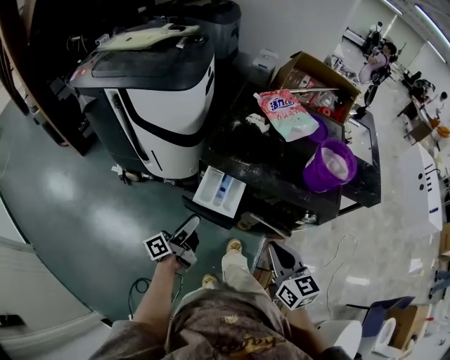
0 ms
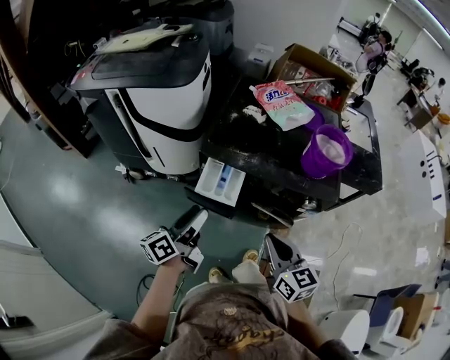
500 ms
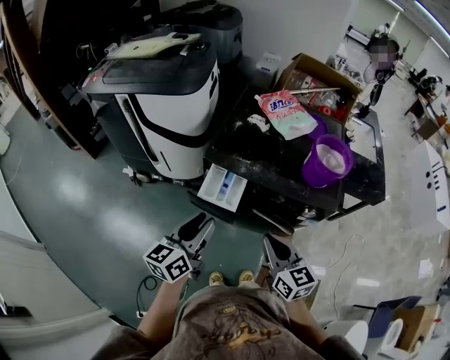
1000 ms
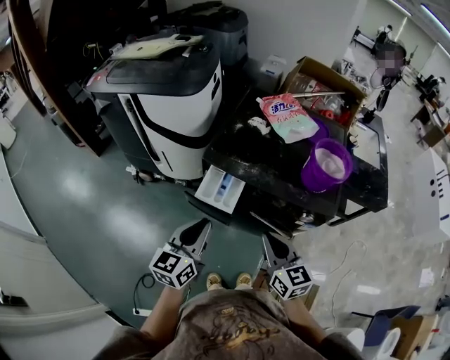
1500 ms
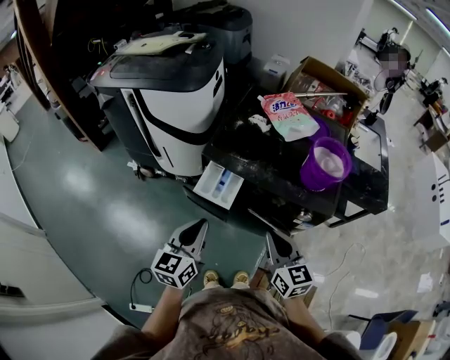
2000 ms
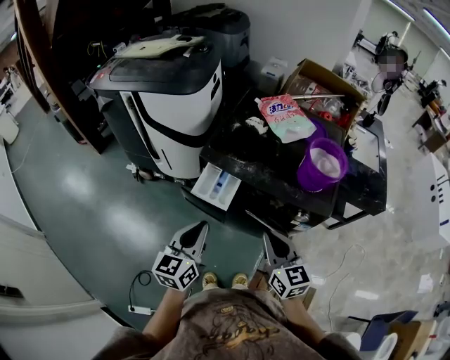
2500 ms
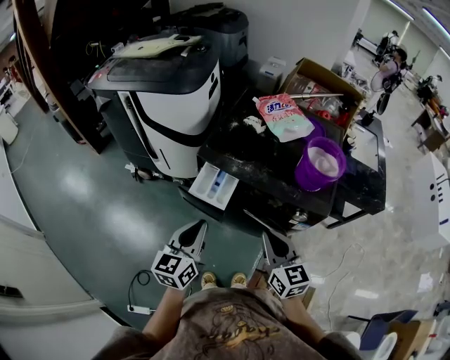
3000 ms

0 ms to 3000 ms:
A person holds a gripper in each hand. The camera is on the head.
0 ms to 1500 ms: The left gripper travels upward and to the right by about 15 cm, rolls clockwise, seen from behind, by roughly 50 degrees, and closes up.
1500 ms to 3000 ms: The grippers stay close to where they were, moving slightly.

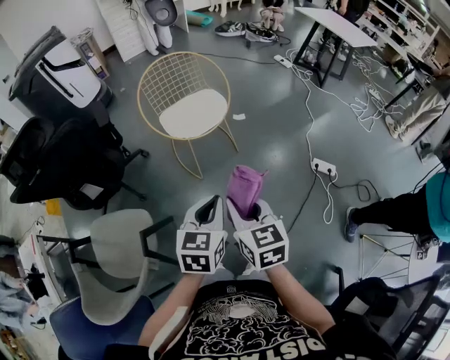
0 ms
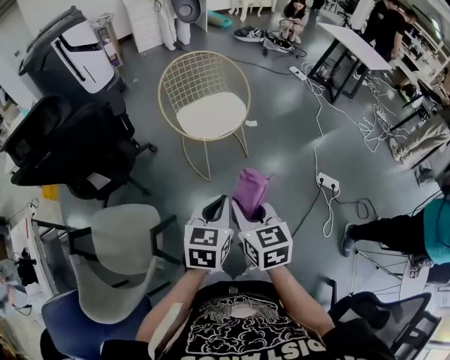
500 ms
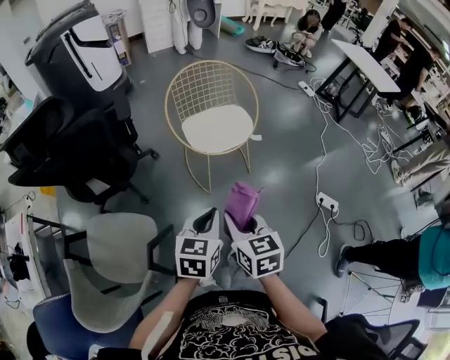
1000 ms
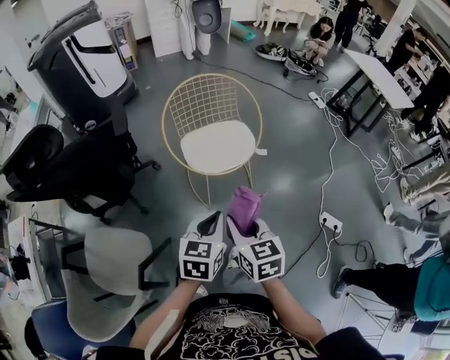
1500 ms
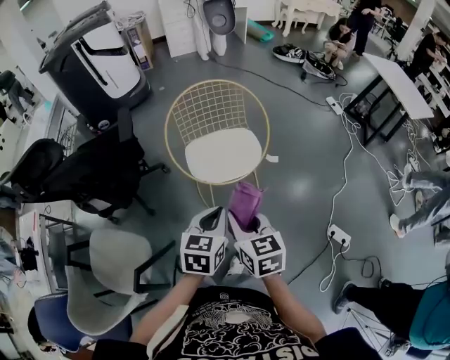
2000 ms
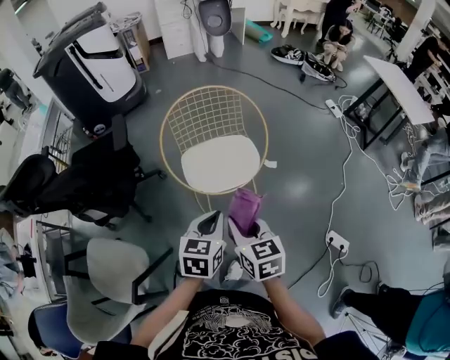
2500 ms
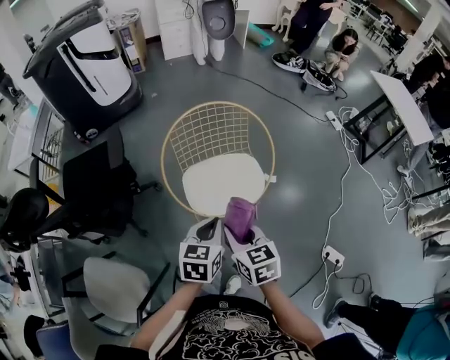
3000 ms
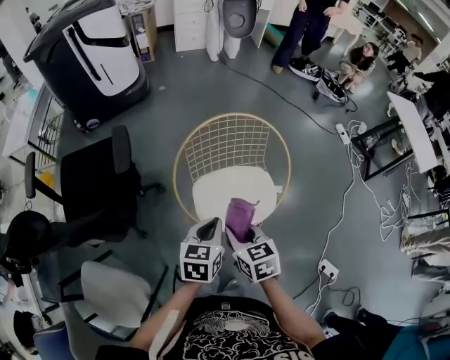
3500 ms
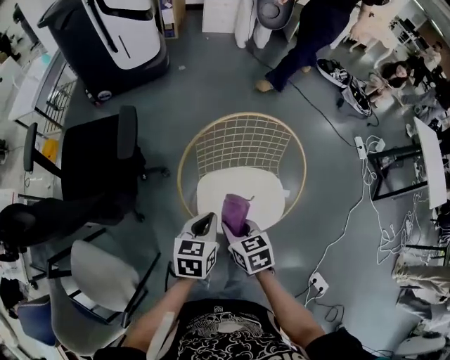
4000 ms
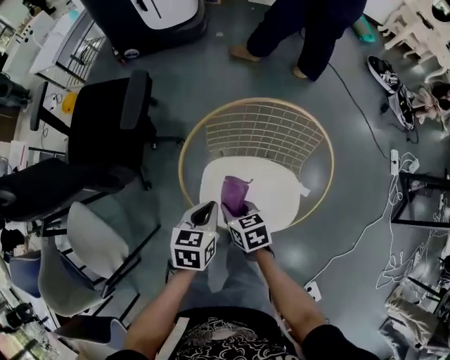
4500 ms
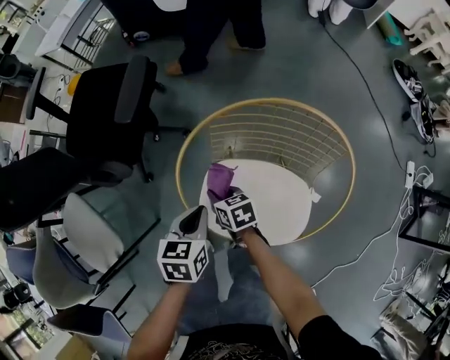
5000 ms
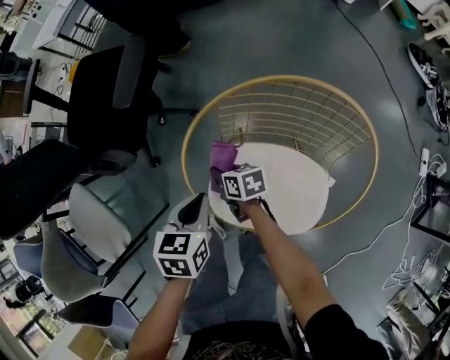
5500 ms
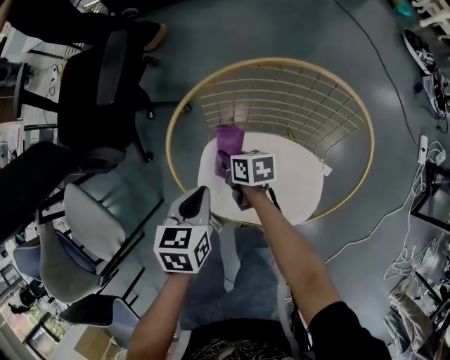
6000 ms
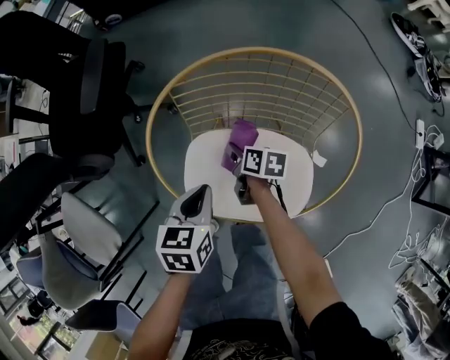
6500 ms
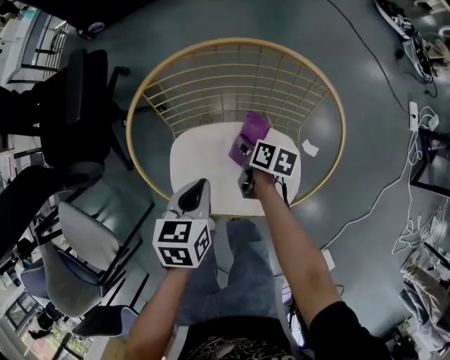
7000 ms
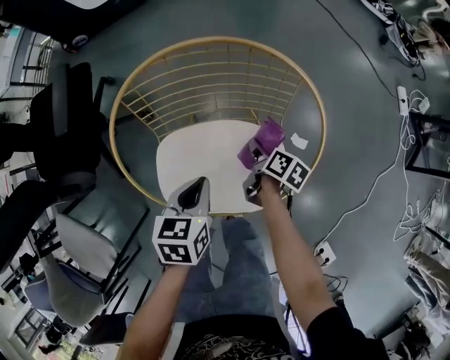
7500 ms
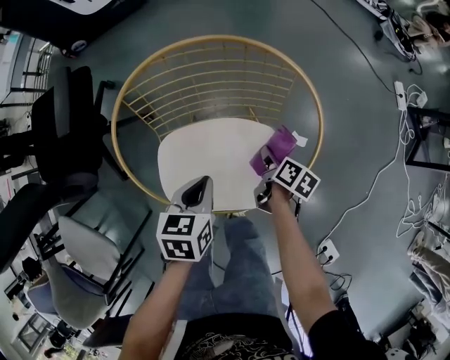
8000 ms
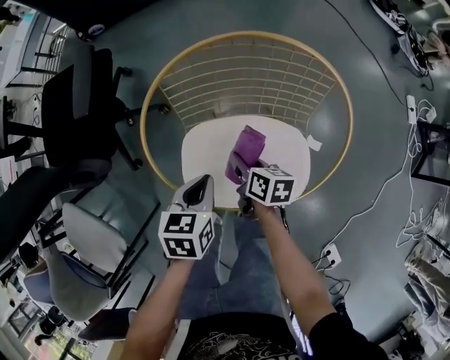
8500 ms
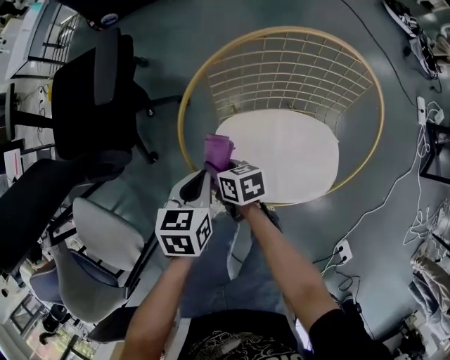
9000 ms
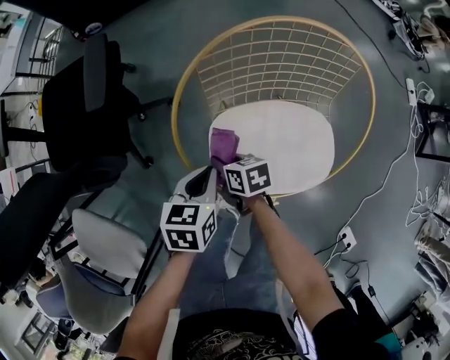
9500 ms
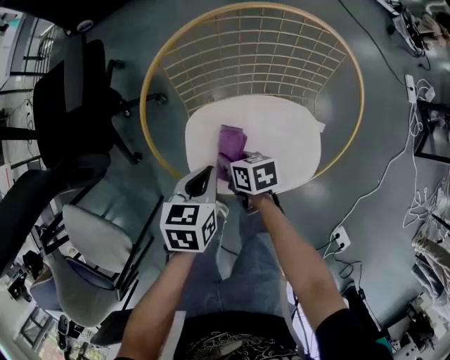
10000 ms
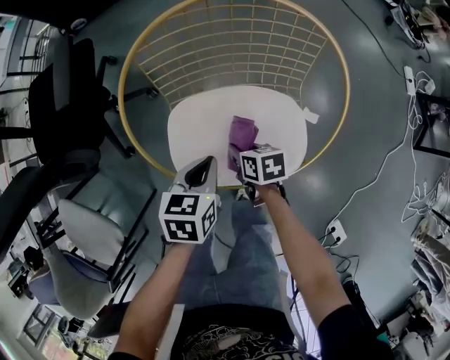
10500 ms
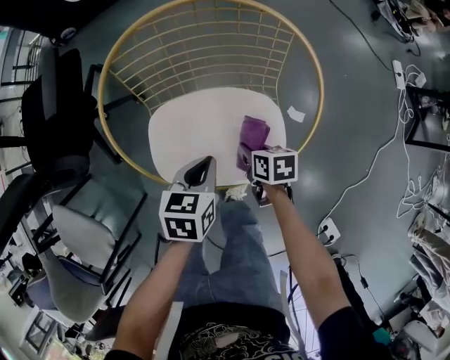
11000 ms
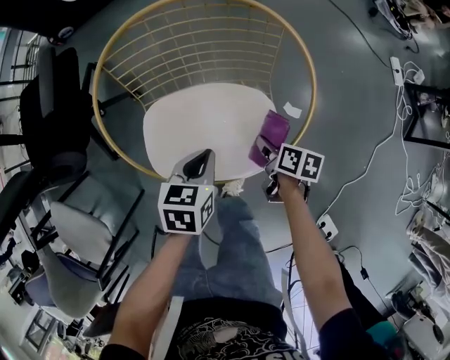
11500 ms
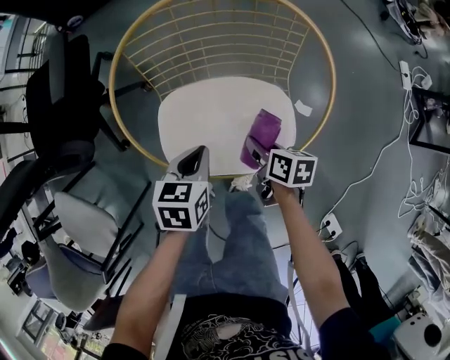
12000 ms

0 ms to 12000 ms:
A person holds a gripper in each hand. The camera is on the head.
0 ms to 2000 ms: Both grippers travel together forward, about 25 cm.
2000 ms to 4000 ms: The right gripper is displaced forward and downward by roughly 30 cm, and rotates about 30 degrees; the left gripper shifts roughly 30 cm forward.
4000 ms to 6000 ms: The left gripper heads downward, covering some 15 cm, and changes its angle by approximately 30 degrees. The right gripper goes some 25 cm downward, and changes its angle by about 30 degrees.
6000 ms to 8000 ms: The right gripper moves some 30 cm, and rotates about 50 degrees, while the left gripper shifts by approximately 15 cm.
8000 ms to 10000 ms: The right gripper shifts by approximately 25 cm, and changes its angle by approximately 50 degrees.
10000 ms to 12000 ms: The left gripper moves to the right, roughly 5 cm. The right gripper travels to the right by approximately 15 cm.

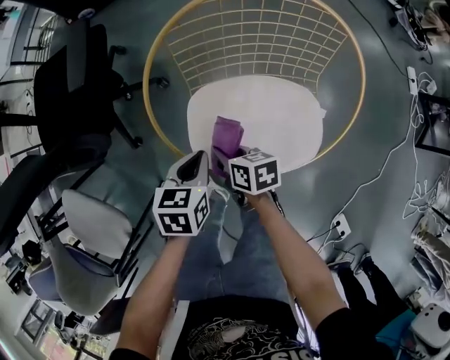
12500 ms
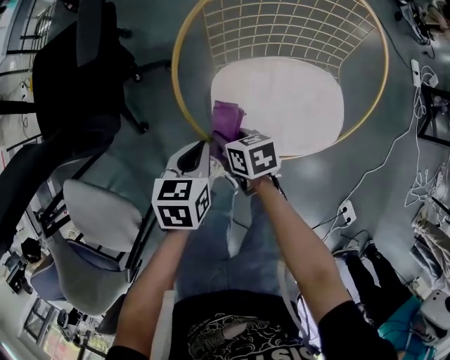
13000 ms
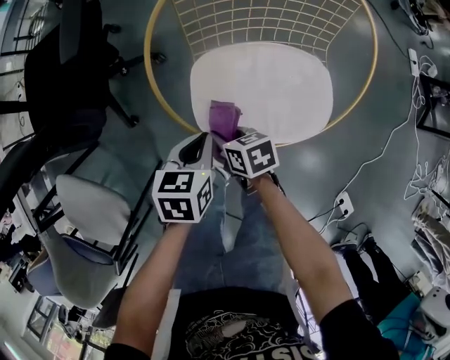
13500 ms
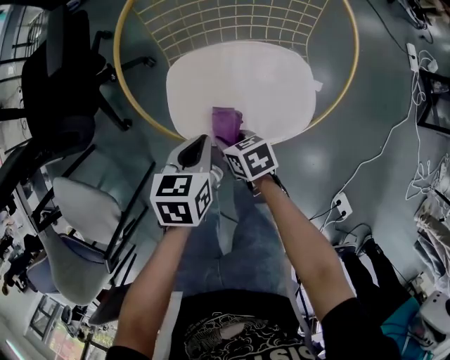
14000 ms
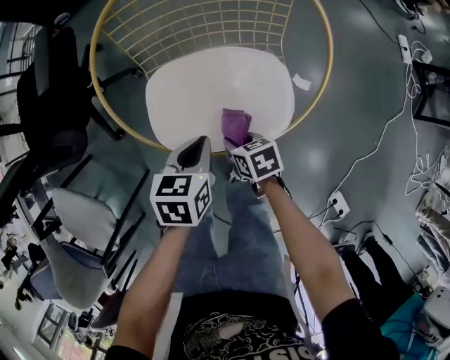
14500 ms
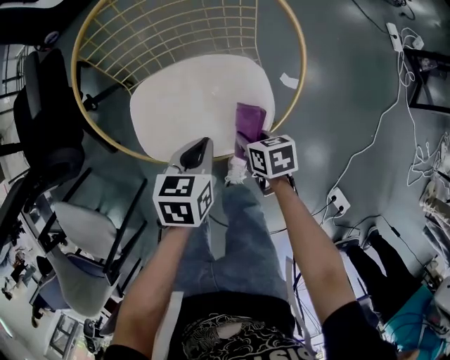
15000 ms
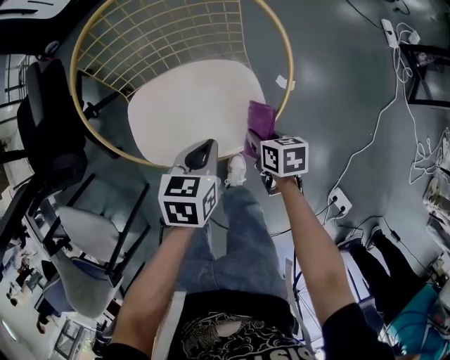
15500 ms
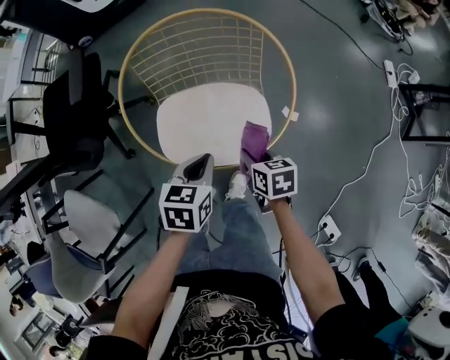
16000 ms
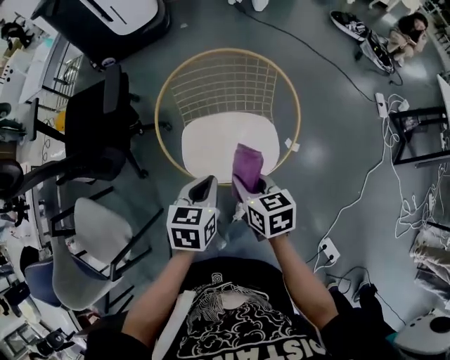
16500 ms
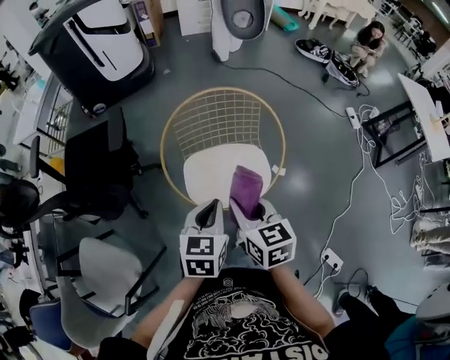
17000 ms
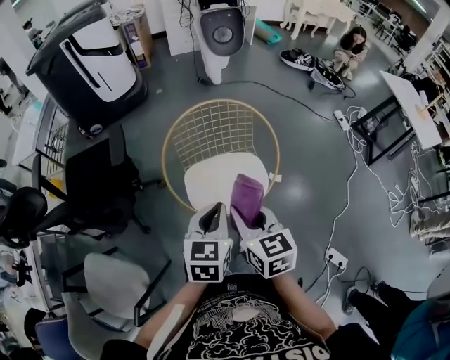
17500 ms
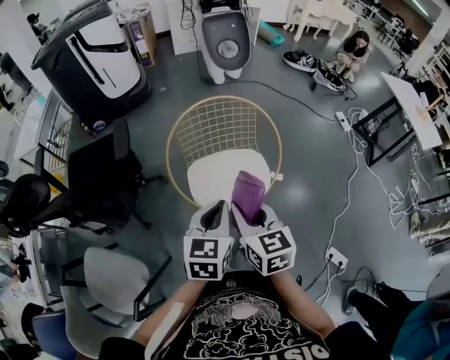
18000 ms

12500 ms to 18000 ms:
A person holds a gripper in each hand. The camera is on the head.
12500 ms to 14500 ms: The right gripper moves to the right, backward and downward, roughly 15 cm. Meanwhile the left gripper heads to the right and backward, covering approximately 10 cm.
14500 ms to 16000 ms: The right gripper is displaced upward and to the right by approximately 15 cm; the left gripper moves upward, approximately 10 cm.
16000 ms to 18000 ms: The left gripper travels upward and backward by roughly 25 cm, and swivels approximately 30 degrees, while the right gripper shifts roughly 35 cm upward and to the left, and rotates about 40 degrees.

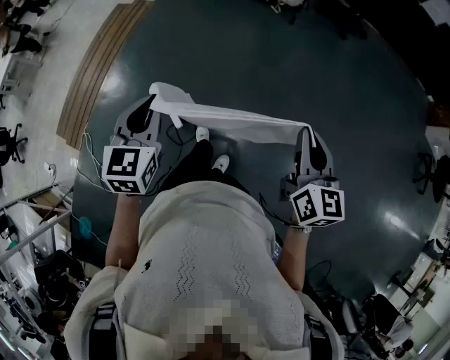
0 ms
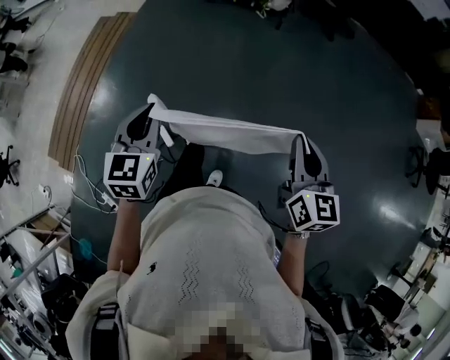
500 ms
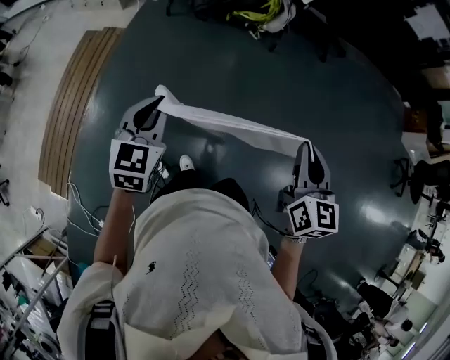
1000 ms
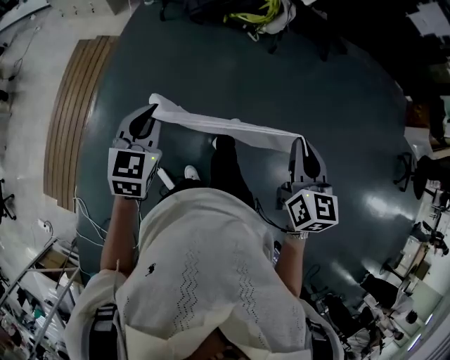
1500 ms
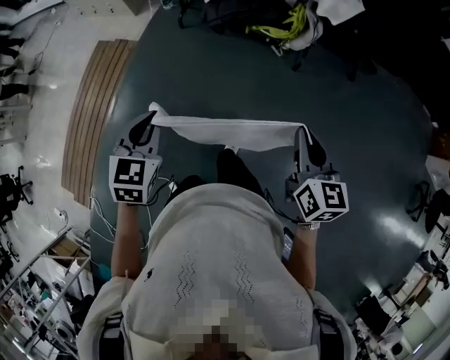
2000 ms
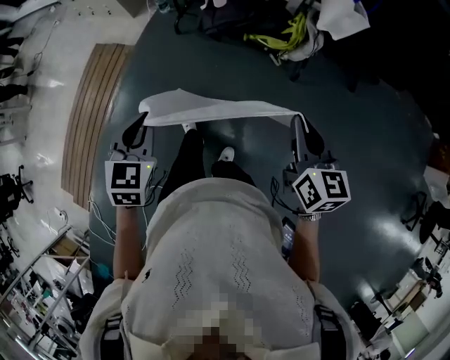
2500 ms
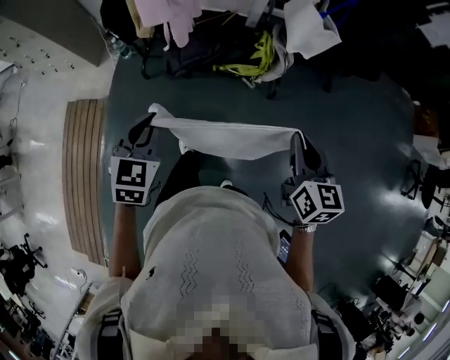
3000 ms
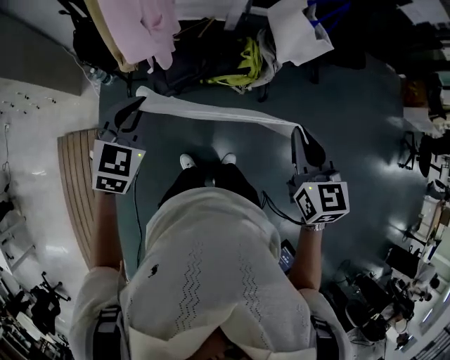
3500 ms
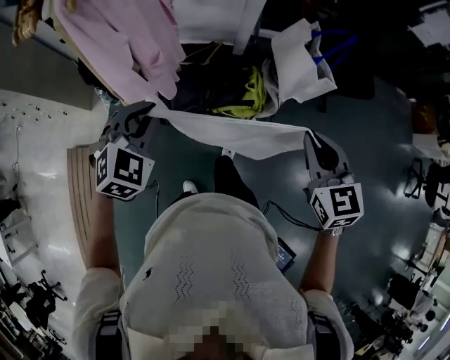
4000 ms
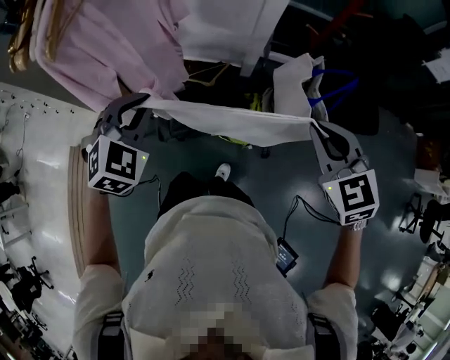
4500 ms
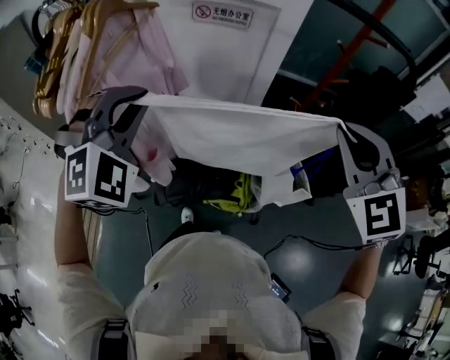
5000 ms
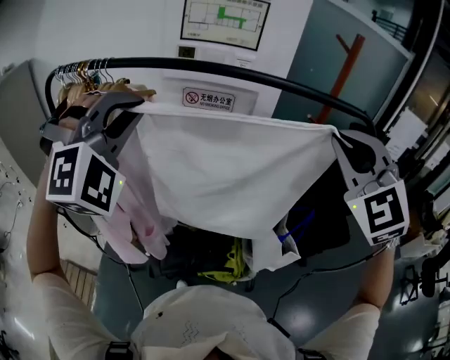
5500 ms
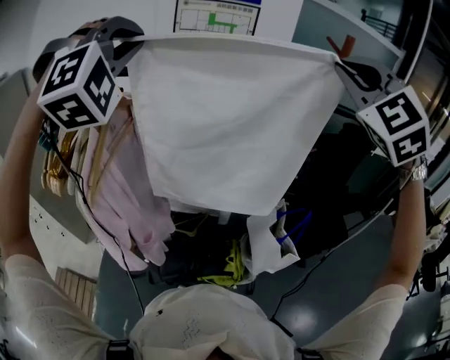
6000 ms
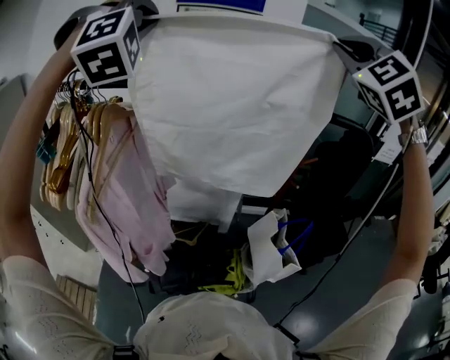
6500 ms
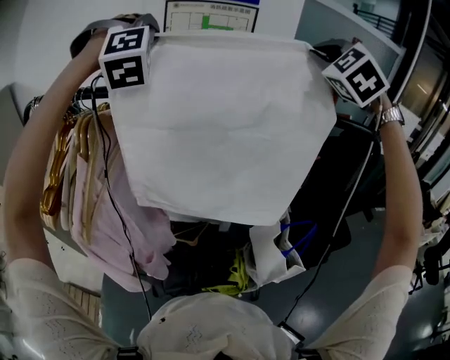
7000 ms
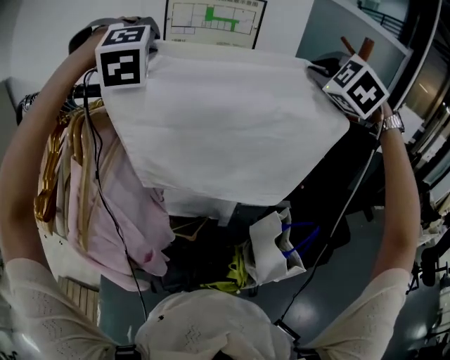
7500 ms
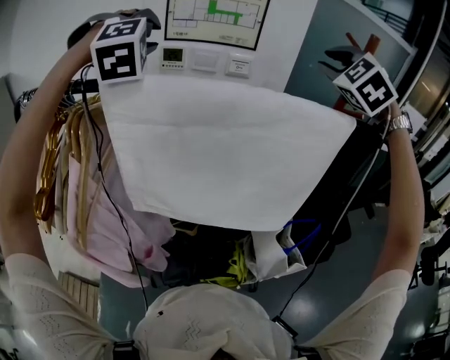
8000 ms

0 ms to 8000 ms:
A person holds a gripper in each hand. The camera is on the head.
0 ms to 2000 ms: The pair of grippers is taken forward, approximately 70 cm.
2000 ms to 4000 ms: The two grippers travel together, about 60 cm. The right gripper turns by about 20 degrees. Meanwhile the left gripper rotates about 40 degrees.
4000 ms to 6000 ms: Both grippers move upward and forward, about 60 cm. The right gripper rotates around the line of its fingers by about 50 degrees, counterclockwise from behind, while the left gripper tips its fingers upward by approximately 30 degrees.
6000 ms to 8000 ms: The two grippers go roughly 20 cm forward. The right gripper opens, while the left gripper opens up.
